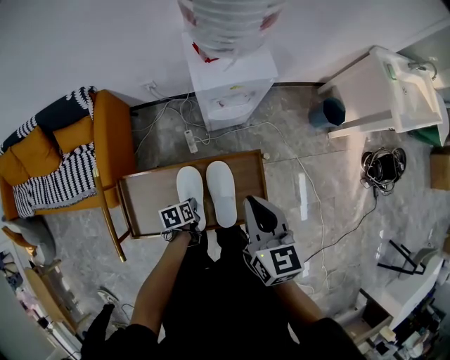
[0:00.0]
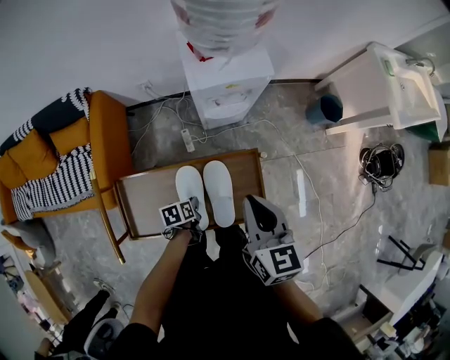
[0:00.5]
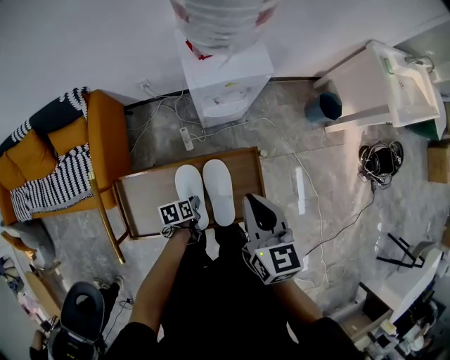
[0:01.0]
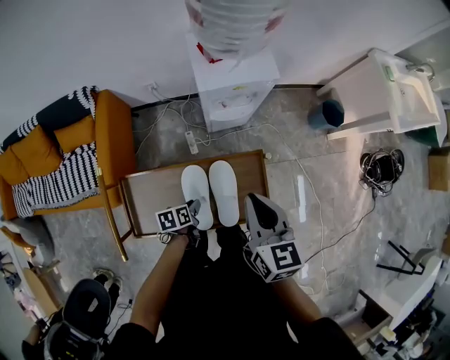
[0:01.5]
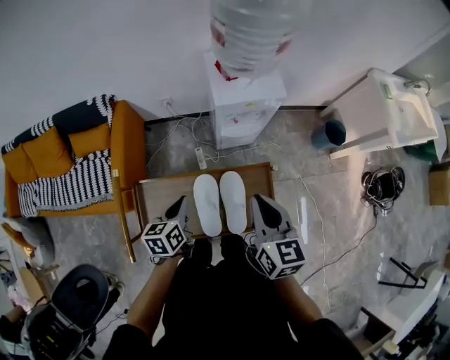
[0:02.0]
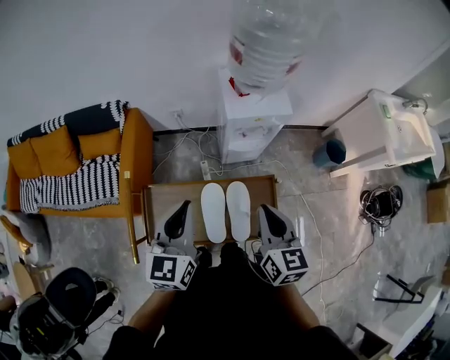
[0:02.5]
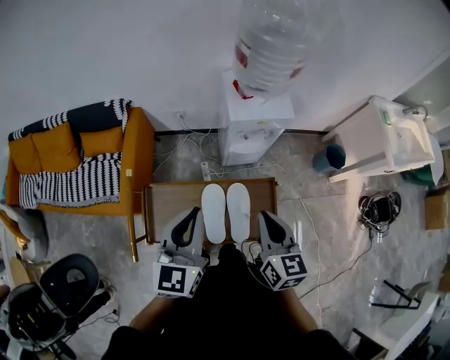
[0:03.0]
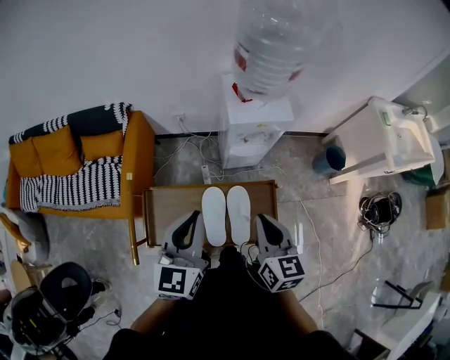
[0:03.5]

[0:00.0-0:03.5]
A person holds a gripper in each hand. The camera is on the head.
0:00.0 to 0:02.0: The left gripper shifts some 20 cm upward, and changes its angle by some 30 degrees.
0:02.0 to 0:03.5: The left gripper travels upward by some 20 cm, and changes its angle by roughly 40 degrees.

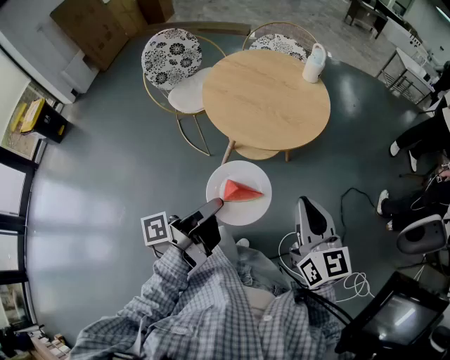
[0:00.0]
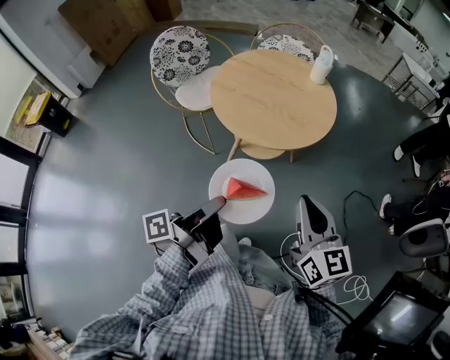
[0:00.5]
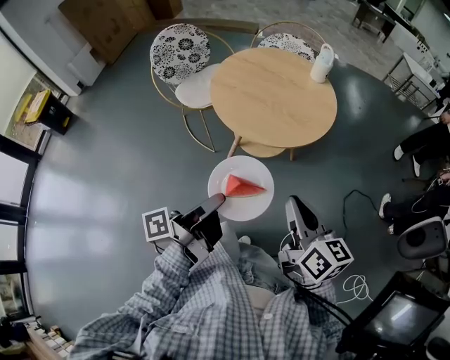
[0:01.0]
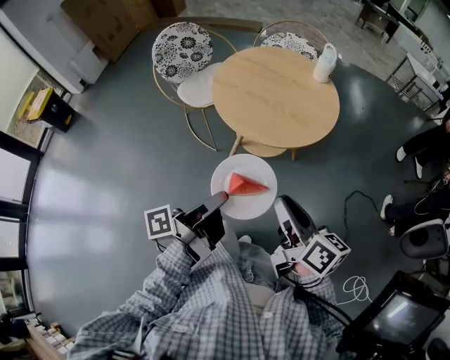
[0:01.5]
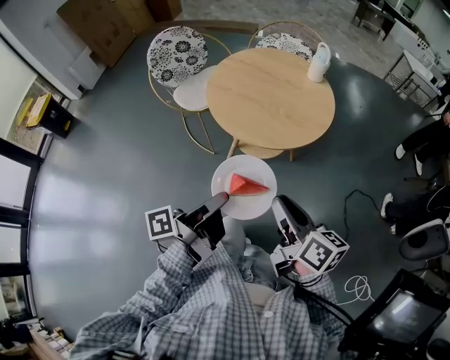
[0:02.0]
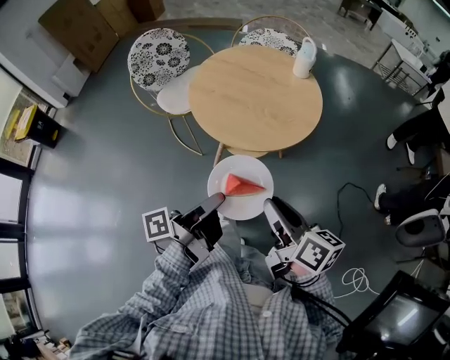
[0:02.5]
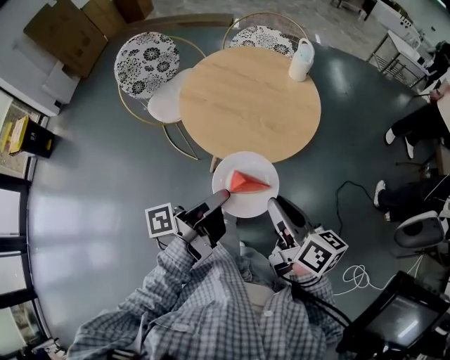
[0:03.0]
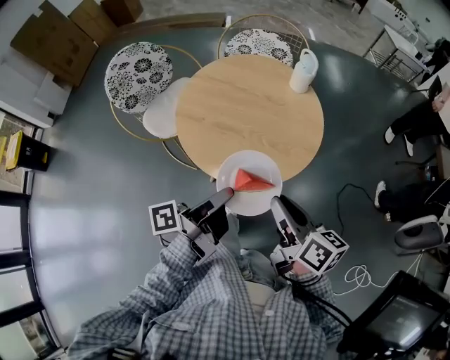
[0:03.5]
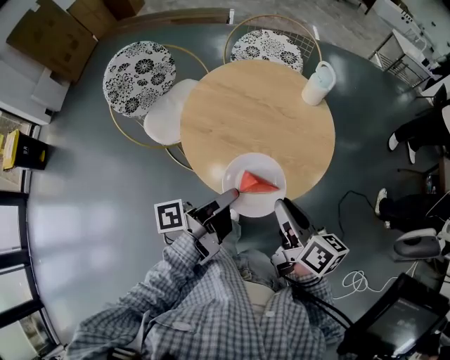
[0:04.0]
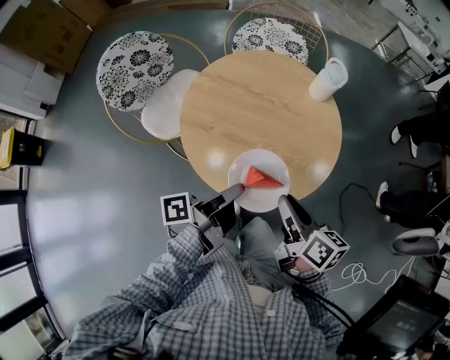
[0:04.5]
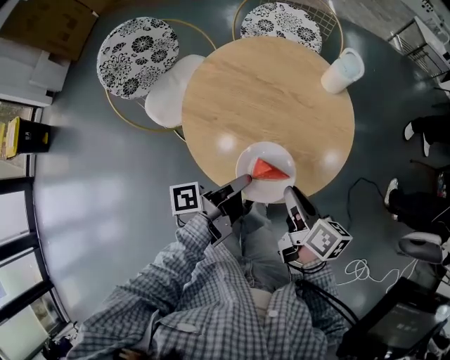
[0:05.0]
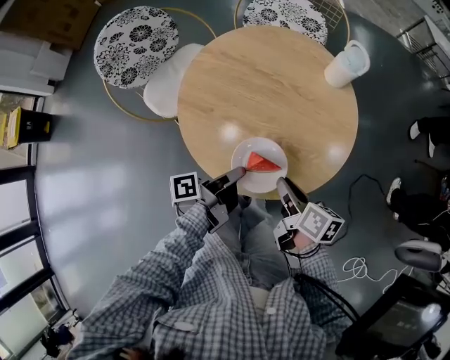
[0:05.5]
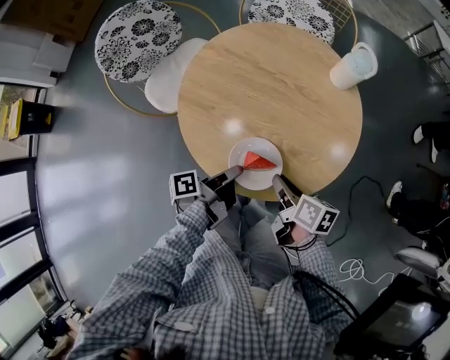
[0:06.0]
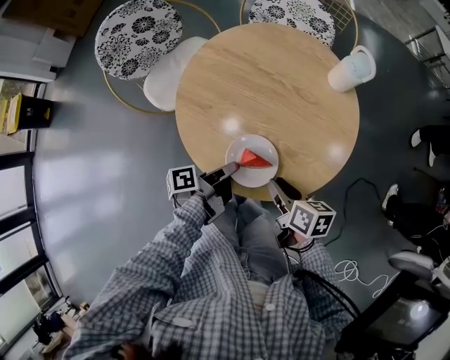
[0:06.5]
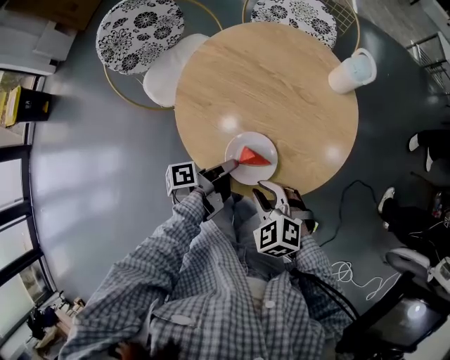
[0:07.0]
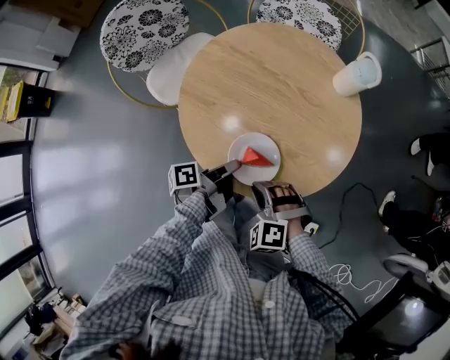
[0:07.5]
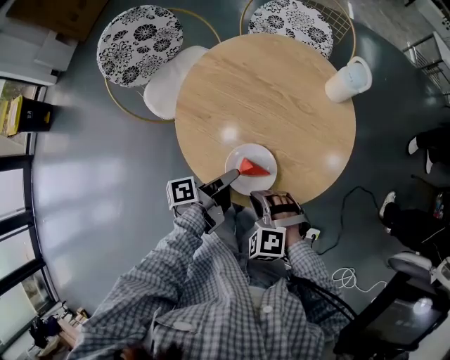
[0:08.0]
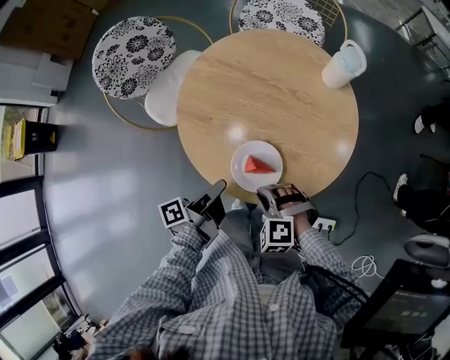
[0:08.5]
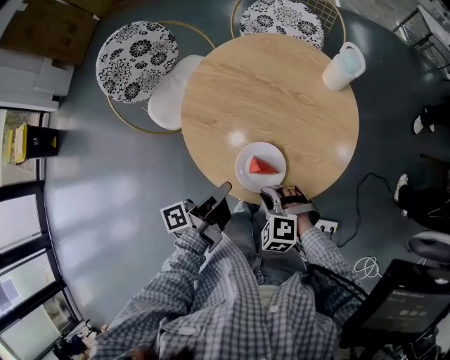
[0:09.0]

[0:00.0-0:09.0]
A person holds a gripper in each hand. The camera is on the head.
0:00.0 to 0:02.0: The right gripper moves roughly 5 cm, and changes its angle by roughly 40 degrees.
0:02.0 to 0:04.5: The right gripper shifts by some 25 cm.
0:04.5 to 0:07.0: The right gripper travels downward by roughly 10 cm, and twists approximately 80 degrees counterclockwise, seen from behind.
0:07.0 to 0:09.0: The right gripper heads downward, covering approximately 5 cm.

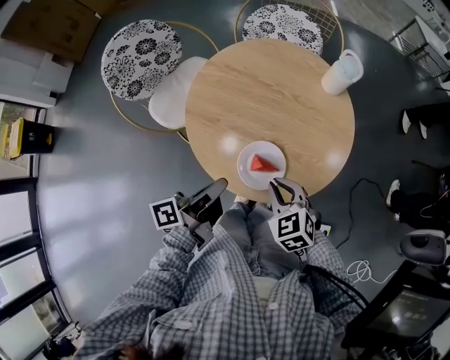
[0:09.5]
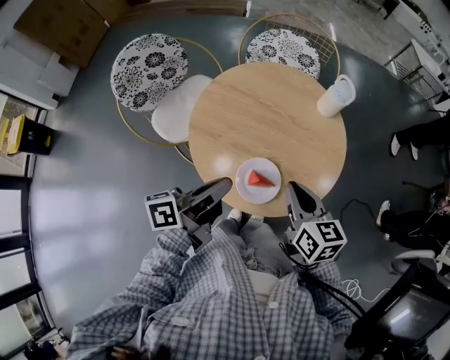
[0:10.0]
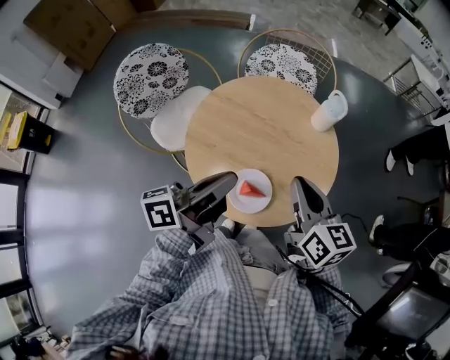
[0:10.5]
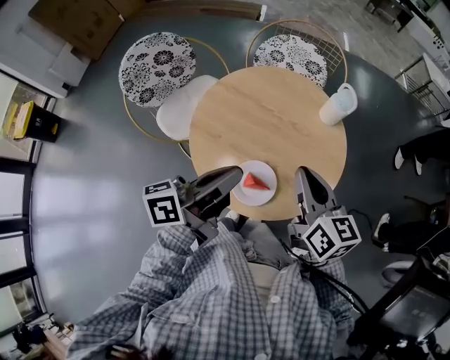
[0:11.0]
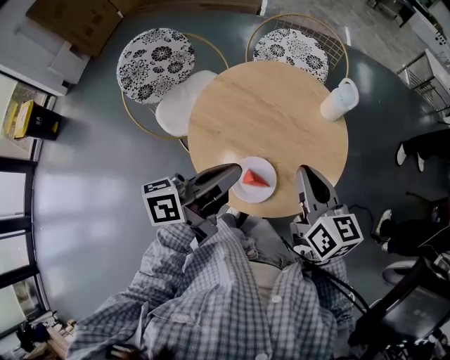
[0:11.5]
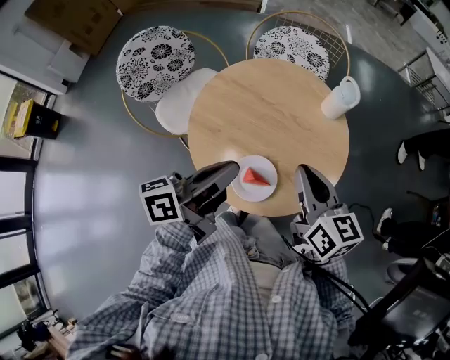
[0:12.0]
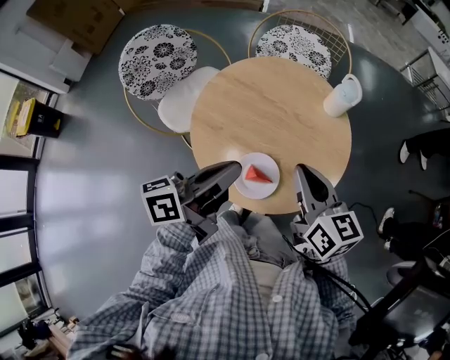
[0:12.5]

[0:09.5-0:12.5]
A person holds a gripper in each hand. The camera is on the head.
0:09.5 to 0:11.0: The right gripper moves upward, roughly 15 cm, and angles its fingers upward, by roughly 30 degrees.

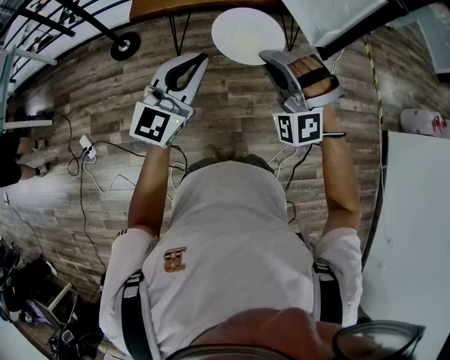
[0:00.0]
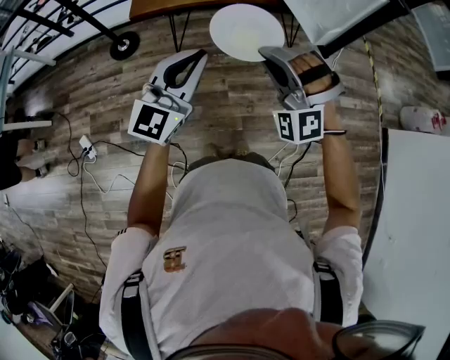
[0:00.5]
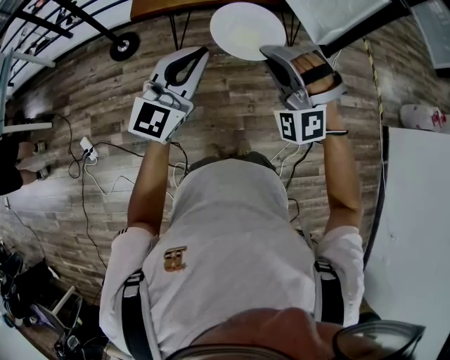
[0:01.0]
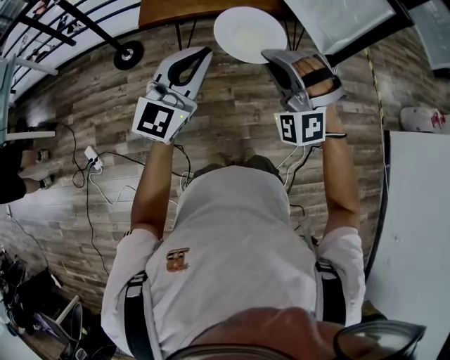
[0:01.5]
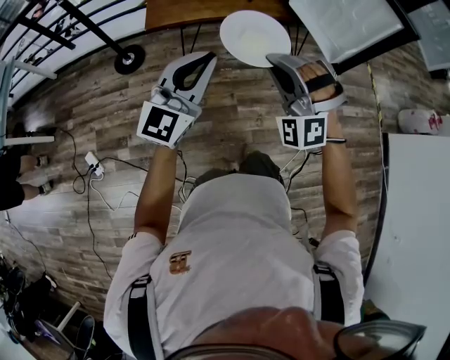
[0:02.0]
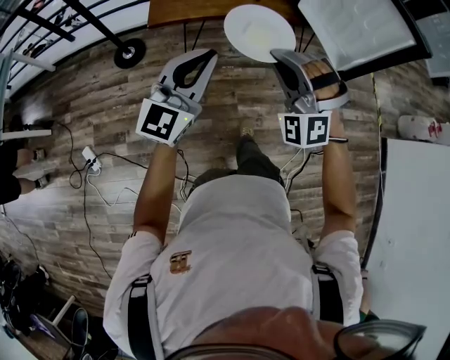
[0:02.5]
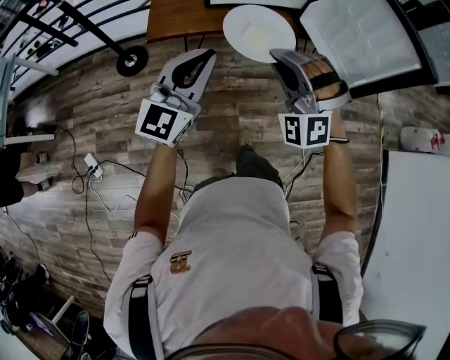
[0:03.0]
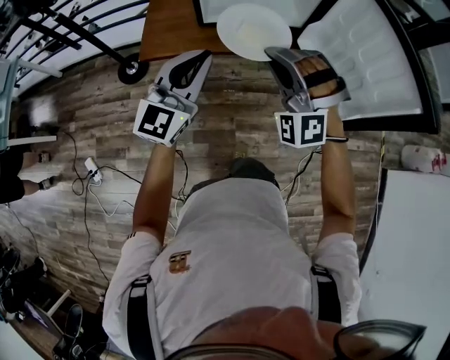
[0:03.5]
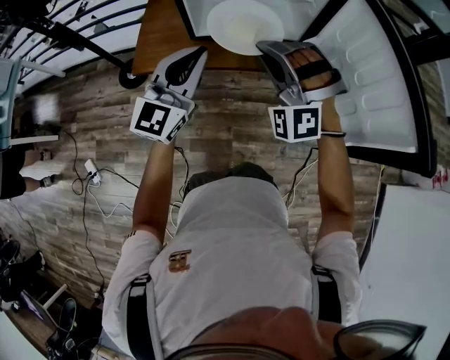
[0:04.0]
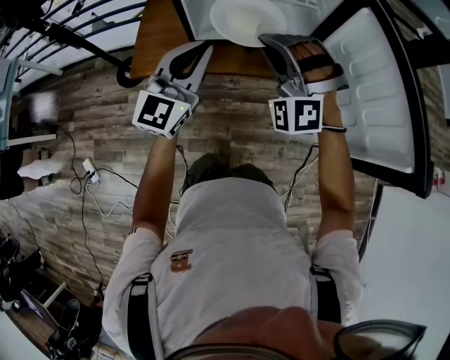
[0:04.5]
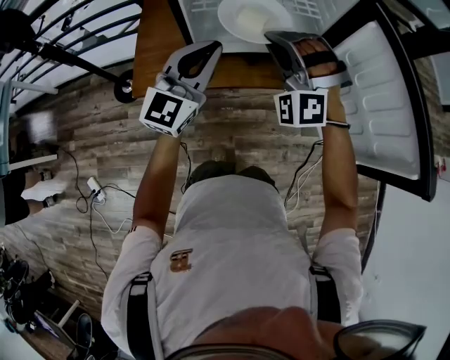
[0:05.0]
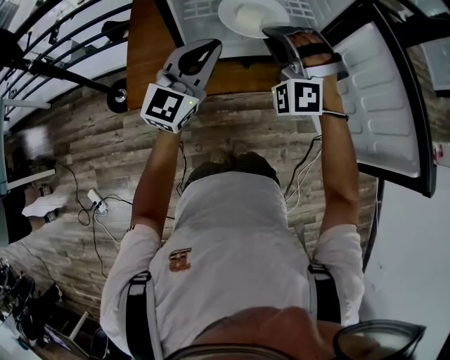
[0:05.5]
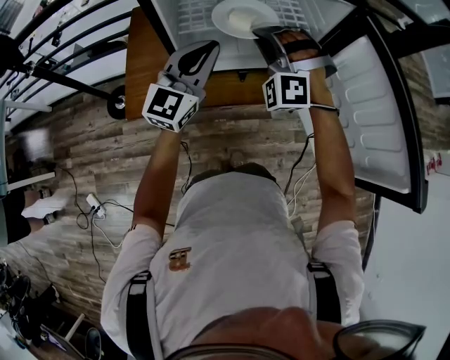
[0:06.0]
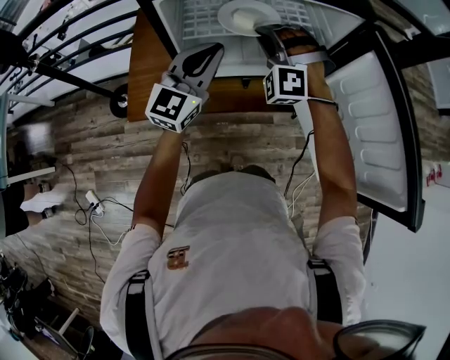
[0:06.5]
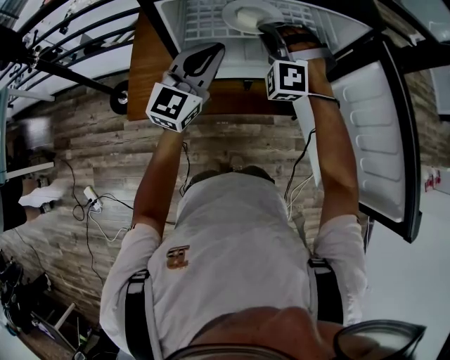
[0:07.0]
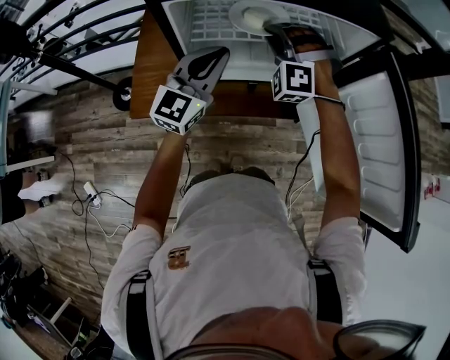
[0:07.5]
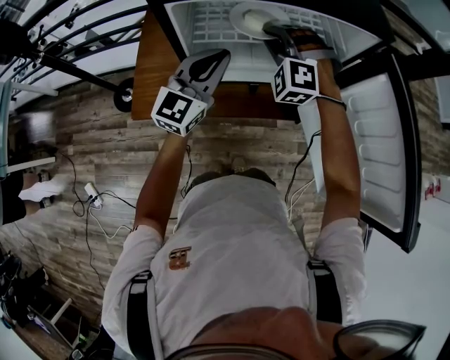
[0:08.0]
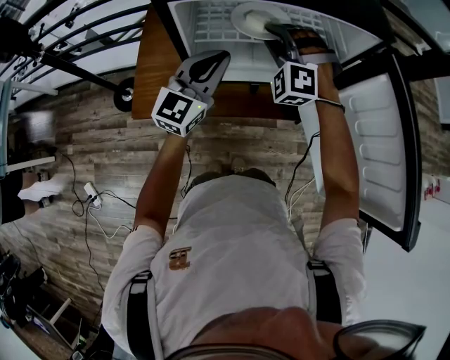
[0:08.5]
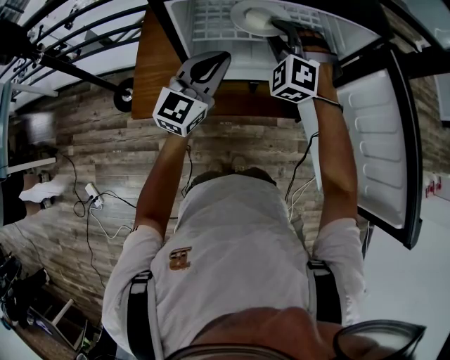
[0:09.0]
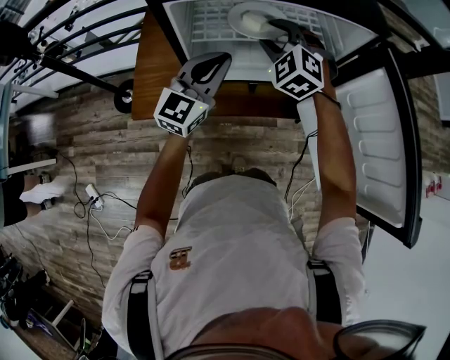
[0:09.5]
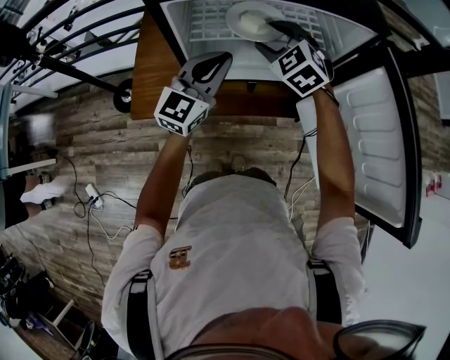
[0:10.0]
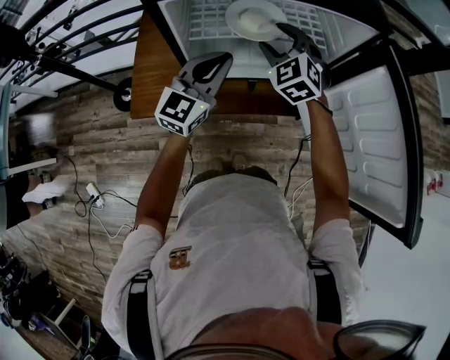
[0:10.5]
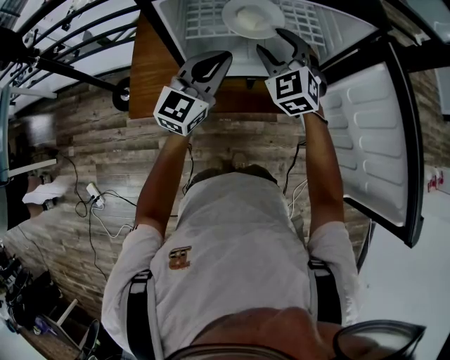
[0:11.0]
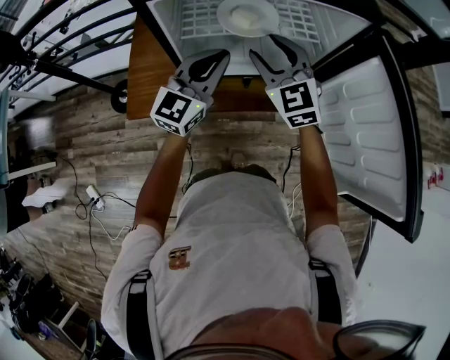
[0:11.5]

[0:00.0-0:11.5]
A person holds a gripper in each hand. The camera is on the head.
0:00.0 to 0:02.0: The two grippers go approximately 15 cm to the left.
0:02.0 to 0:04.0: Both grippers travel together forward, some 35 cm.
0:04.0 to 0:06.0: The grippers both shift forward by approximately 20 cm.
0:06.0 to 0:07.5: The right gripper travels forward by about 10 cm.
0:07.5 to 0:09.5: The right gripper turns by approximately 30 degrees, and opens.
0:09.5 to 0:11.5: The right gripper travels backward by roughly 5 cm, and changes its angle by some 30 degrees.
